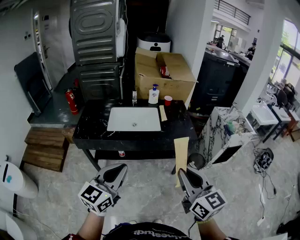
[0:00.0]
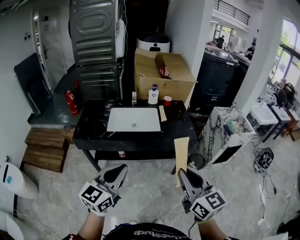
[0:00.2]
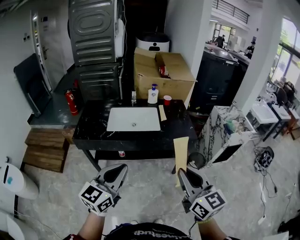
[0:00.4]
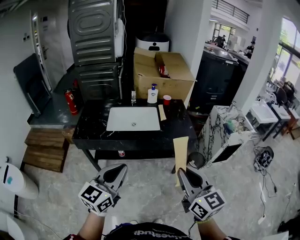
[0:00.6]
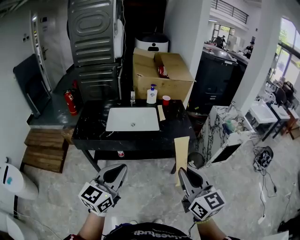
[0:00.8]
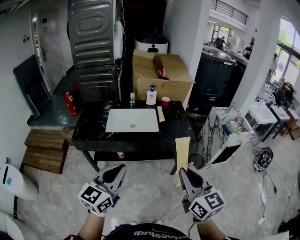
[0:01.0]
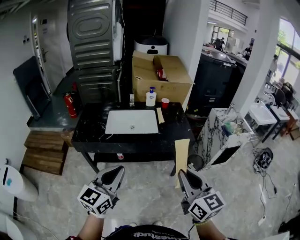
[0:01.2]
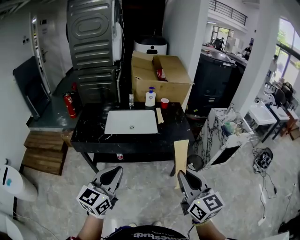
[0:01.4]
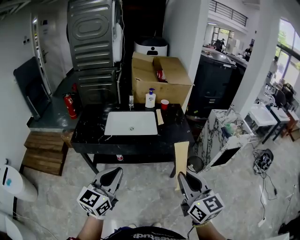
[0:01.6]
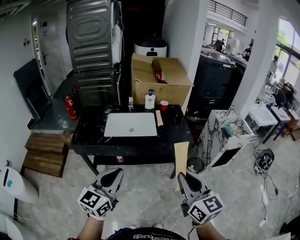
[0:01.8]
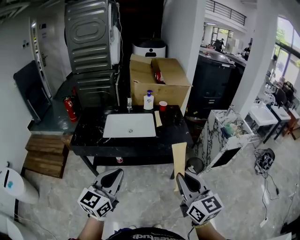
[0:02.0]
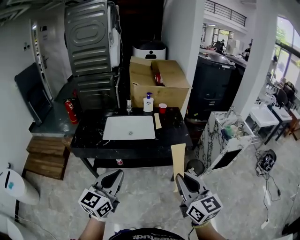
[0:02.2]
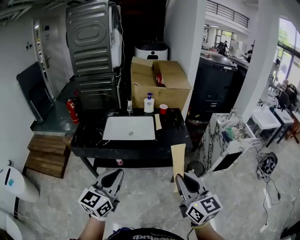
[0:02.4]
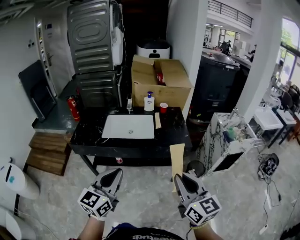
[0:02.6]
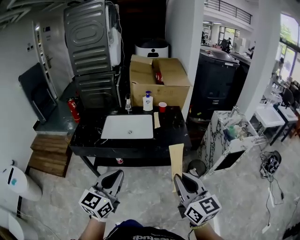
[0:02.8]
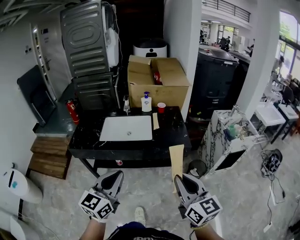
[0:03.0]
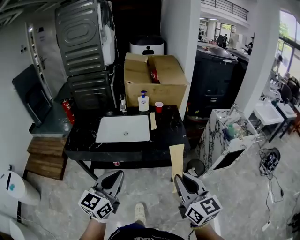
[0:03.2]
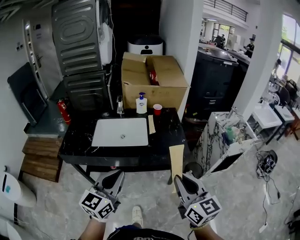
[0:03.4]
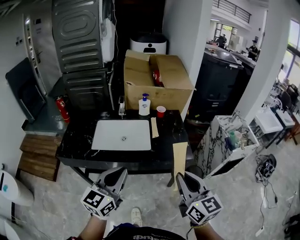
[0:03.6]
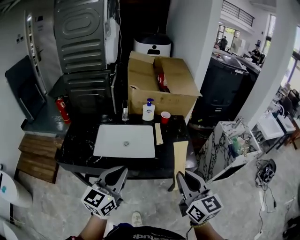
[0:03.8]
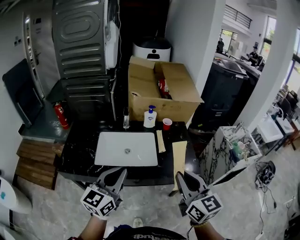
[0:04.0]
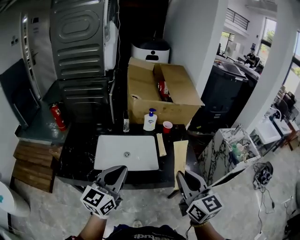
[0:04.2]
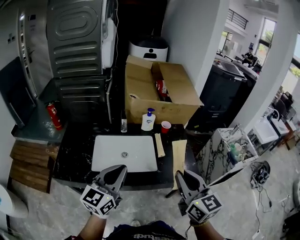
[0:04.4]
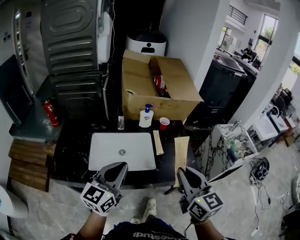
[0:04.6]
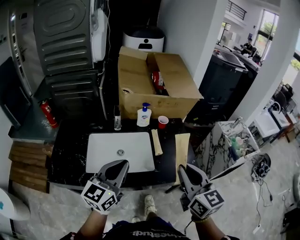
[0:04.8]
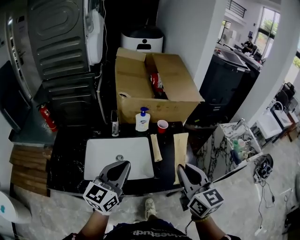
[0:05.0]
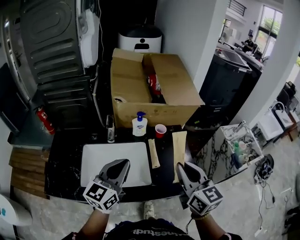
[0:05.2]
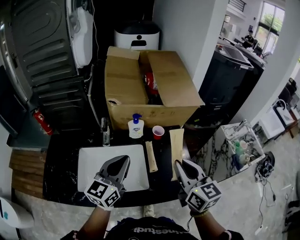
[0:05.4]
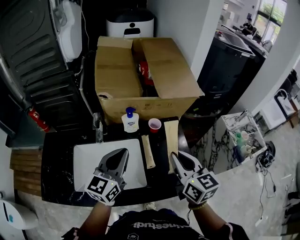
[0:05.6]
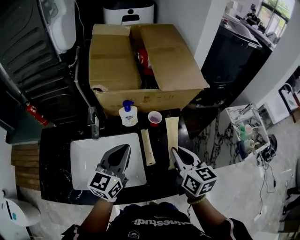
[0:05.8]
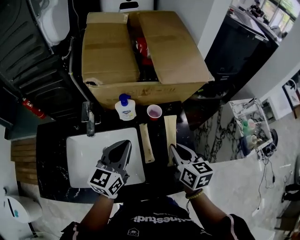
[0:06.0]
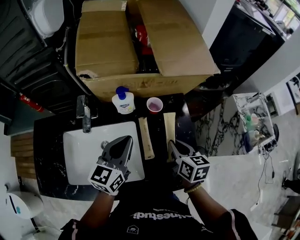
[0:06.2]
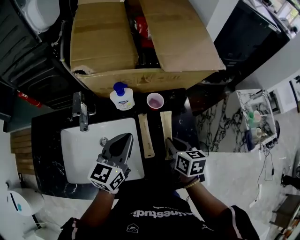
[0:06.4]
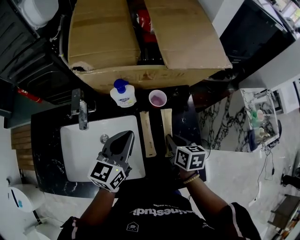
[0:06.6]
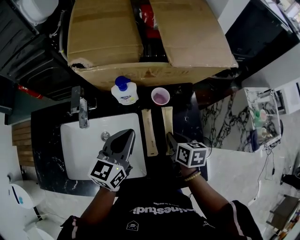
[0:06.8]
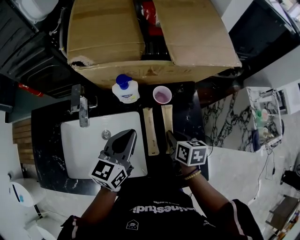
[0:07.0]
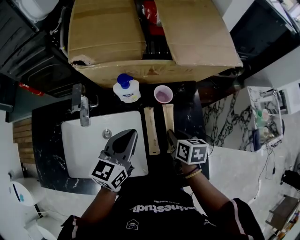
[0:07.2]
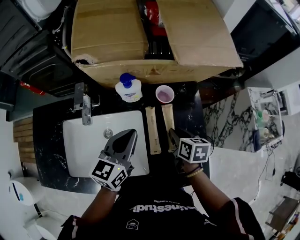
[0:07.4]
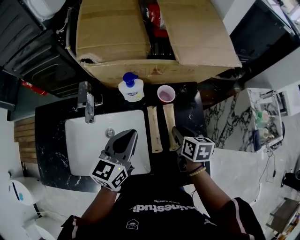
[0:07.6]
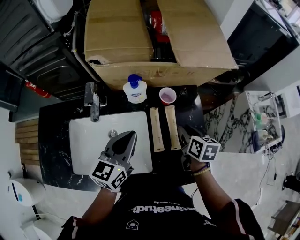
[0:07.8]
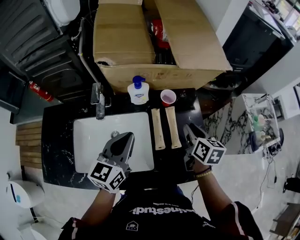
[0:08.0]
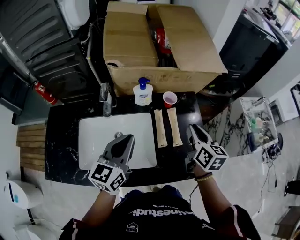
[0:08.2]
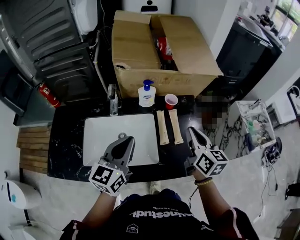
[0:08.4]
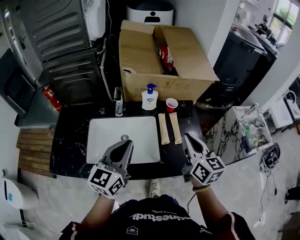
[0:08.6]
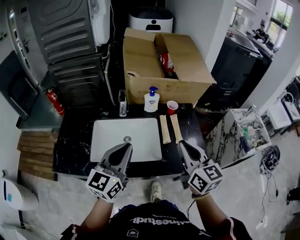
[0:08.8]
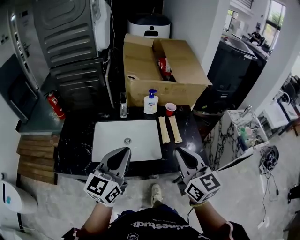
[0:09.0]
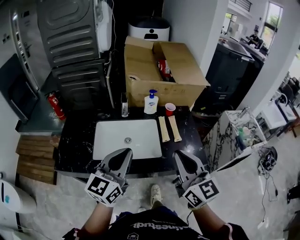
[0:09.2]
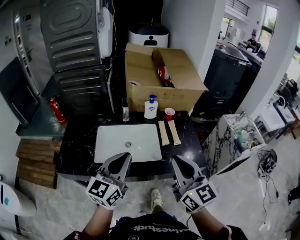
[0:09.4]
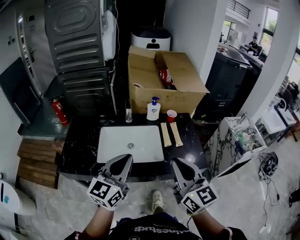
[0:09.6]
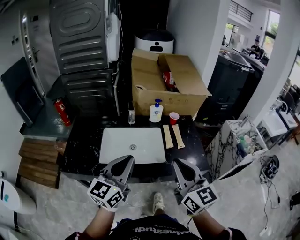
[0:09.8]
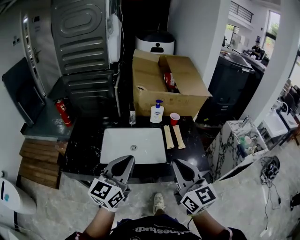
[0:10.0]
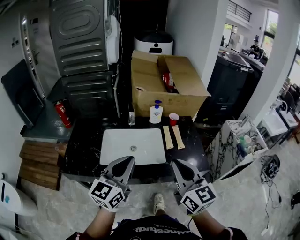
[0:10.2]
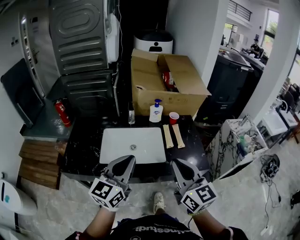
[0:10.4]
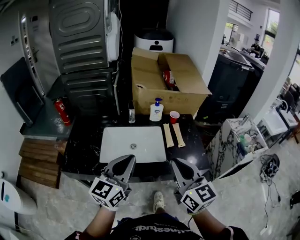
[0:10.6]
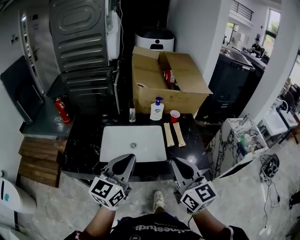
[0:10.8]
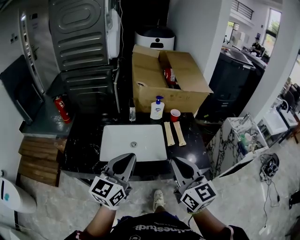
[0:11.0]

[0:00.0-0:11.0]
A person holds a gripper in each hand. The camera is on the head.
0:00.0 to 0:01.6: The grippers make only small movements.
0:01.6 to 0:03.2: Both grippers move to the right and forward, about 10 cm.
0:03.2 to 0:04.8: Both grippers travel together forward, some 30 cm.
0:04.8 to 0:06.2: The two grippers go about 35 cm forward and downward. The right gripper changes its angle by about 30 degrees.
0:07.8 to 0:09.4: The left gripper travels backward and upward by roughly 35 cm. Meanwhile the right gripper travels backward, upward and to the left by about 50 cm, tilts its fingers approximately 40 degrees upward, and closes.
0:09.4 to 0:11.0: The grippers move only a little.

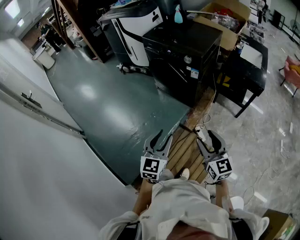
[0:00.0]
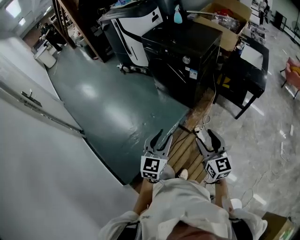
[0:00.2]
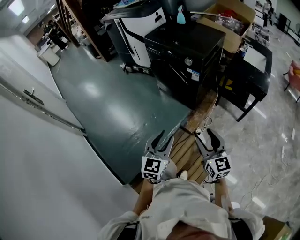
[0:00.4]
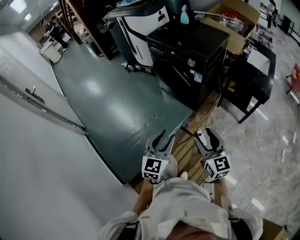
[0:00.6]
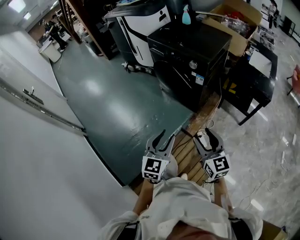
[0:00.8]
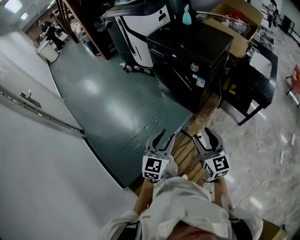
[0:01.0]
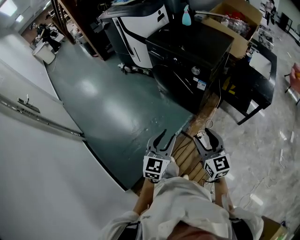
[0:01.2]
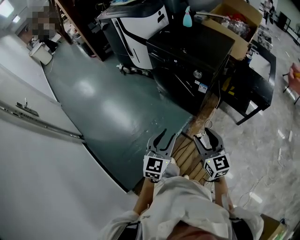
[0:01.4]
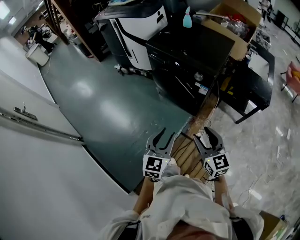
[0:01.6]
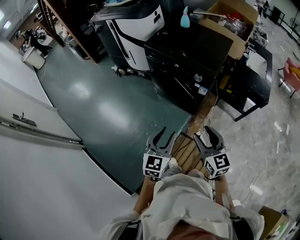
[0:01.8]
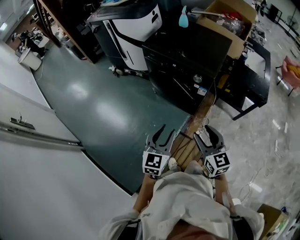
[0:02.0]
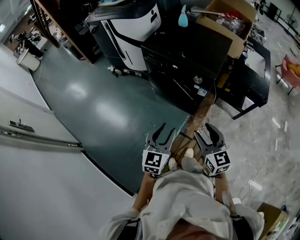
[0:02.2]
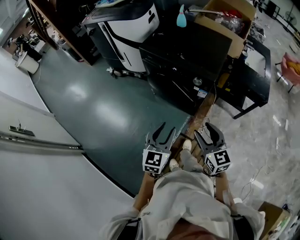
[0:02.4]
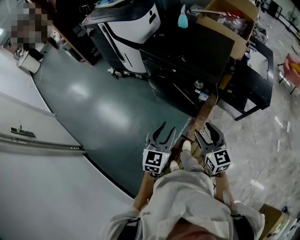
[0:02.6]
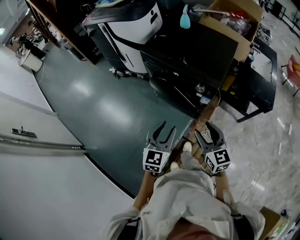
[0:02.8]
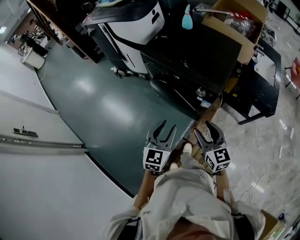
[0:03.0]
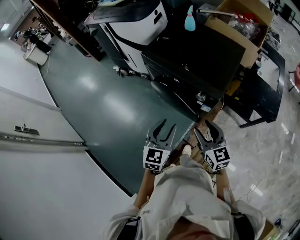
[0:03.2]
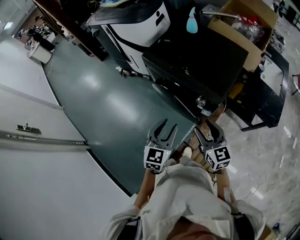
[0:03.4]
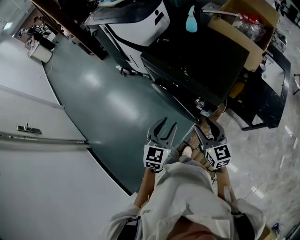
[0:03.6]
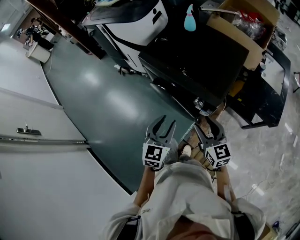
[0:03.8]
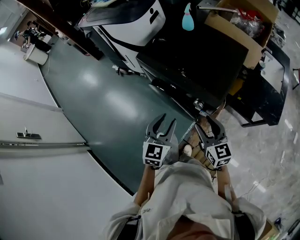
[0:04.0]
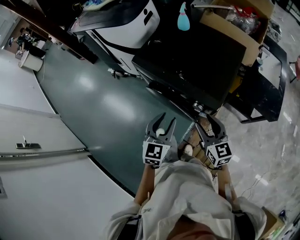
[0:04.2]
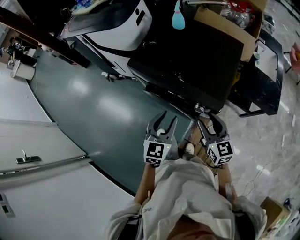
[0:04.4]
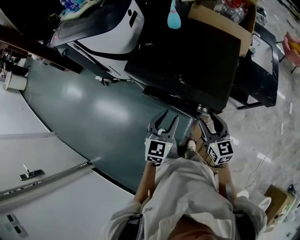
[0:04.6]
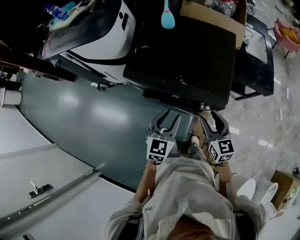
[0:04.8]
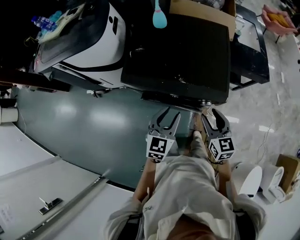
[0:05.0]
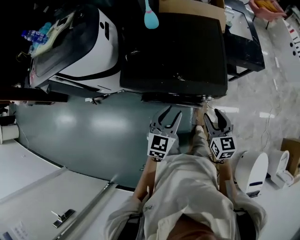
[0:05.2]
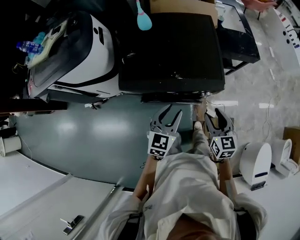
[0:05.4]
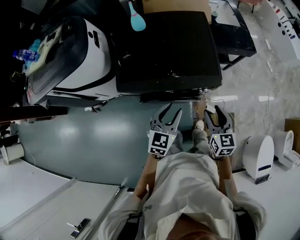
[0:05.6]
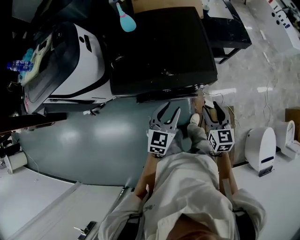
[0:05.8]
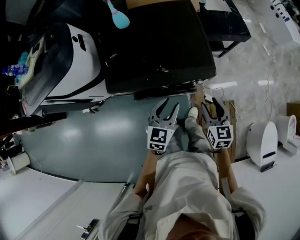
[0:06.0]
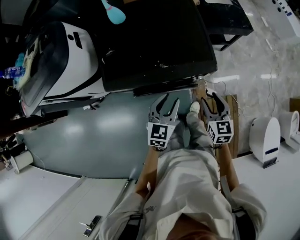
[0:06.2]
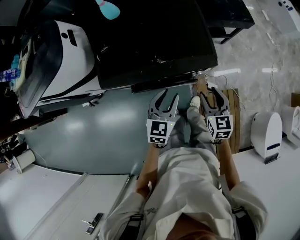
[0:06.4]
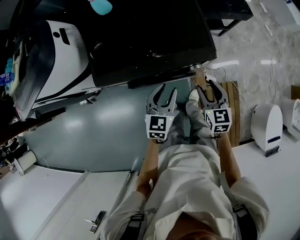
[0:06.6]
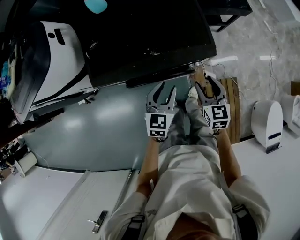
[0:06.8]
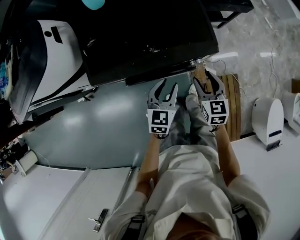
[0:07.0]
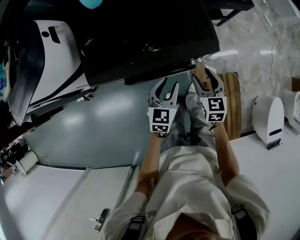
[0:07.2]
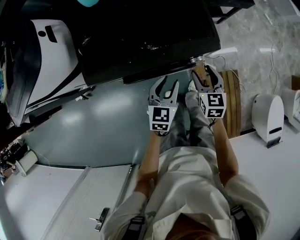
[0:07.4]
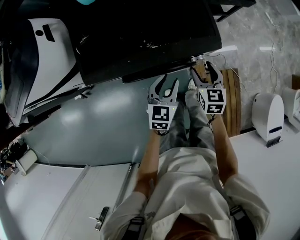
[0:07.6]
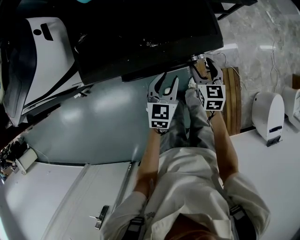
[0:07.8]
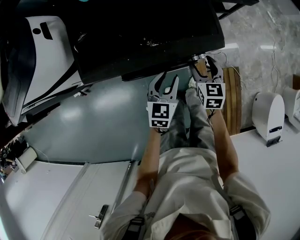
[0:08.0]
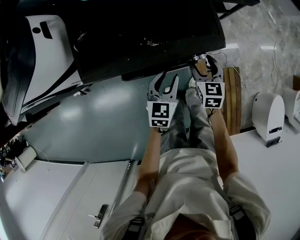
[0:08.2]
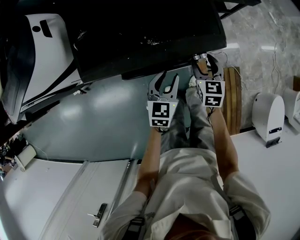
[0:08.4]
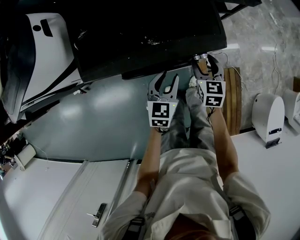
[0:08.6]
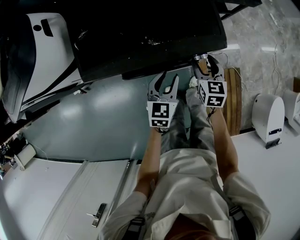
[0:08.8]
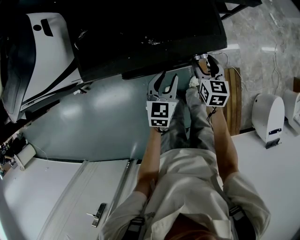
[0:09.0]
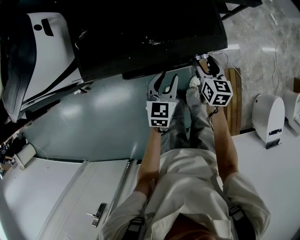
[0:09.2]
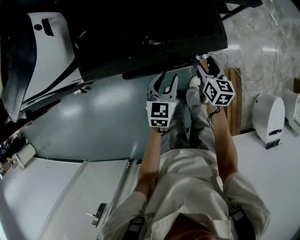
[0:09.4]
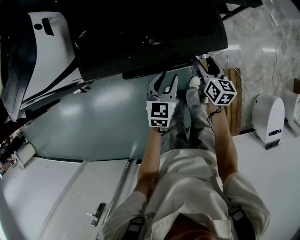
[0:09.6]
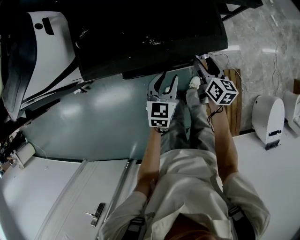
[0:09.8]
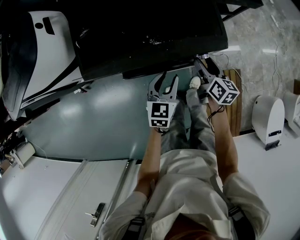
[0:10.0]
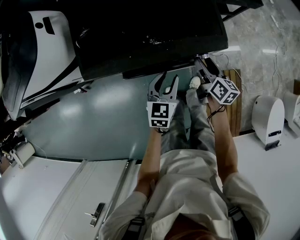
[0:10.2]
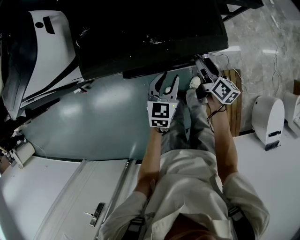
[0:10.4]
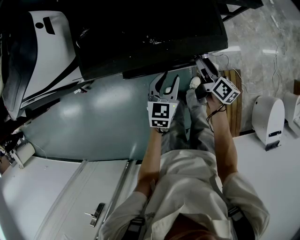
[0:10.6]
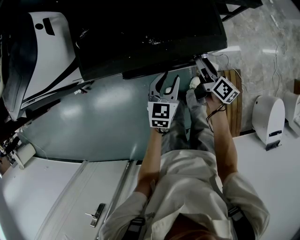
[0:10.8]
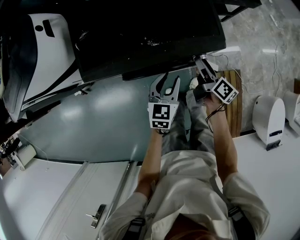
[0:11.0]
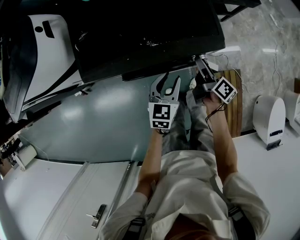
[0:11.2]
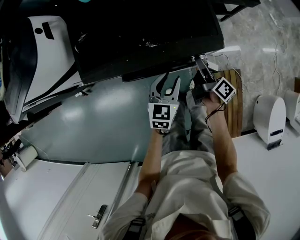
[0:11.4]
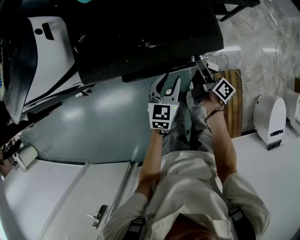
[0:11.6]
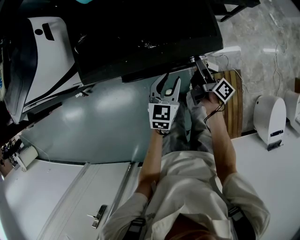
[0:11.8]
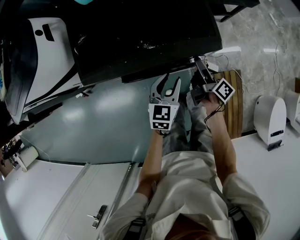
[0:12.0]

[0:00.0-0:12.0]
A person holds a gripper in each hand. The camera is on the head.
0:00.0 to 0:01.6: The two grippers go some 20 cm forward.
0:01.6 to 0:03.0: Both grippers travel together forward, roughly 20 cm.
0:03.0 to 0:04.4: The two grippers go approximately 15 cm forward.
0:04.4 to 0:06.0: The left gripper ends up approximately 5 cm from where it was, and swivels about 40 degrees. The right gripper swivels roughly 50 degrees.
0:06.0 to 0:07.6: The right gripper shifts approximately 15 cm downward and forward. Meanwhile the left gripper travels downward by approximately 15 cm.
0:07.6 to 0:09.0: There are only small adjustments of the grippers.
0:09.0 to 0:10.4: The right gripper swivels approximately 40 degrees.
0:10.4 to 0:12.0: The right gripper turns by roughly 30 degrees.

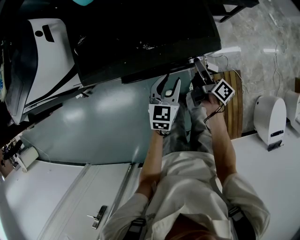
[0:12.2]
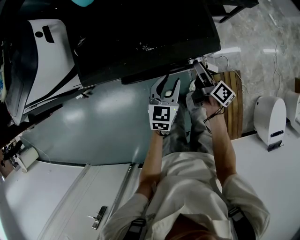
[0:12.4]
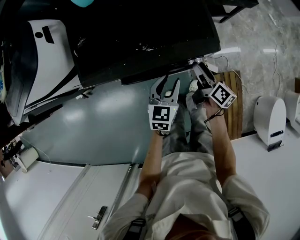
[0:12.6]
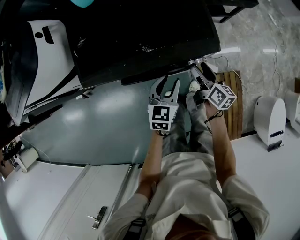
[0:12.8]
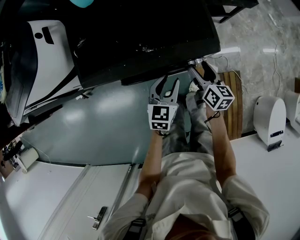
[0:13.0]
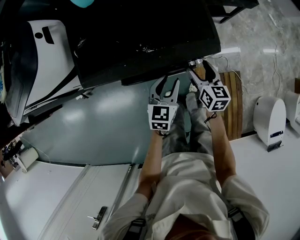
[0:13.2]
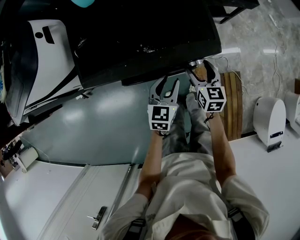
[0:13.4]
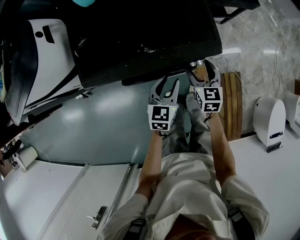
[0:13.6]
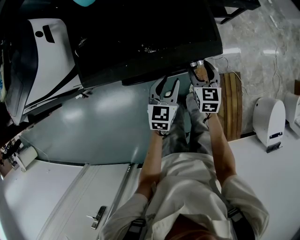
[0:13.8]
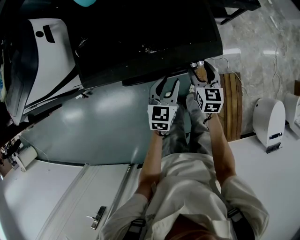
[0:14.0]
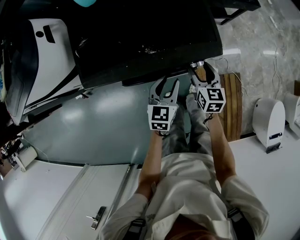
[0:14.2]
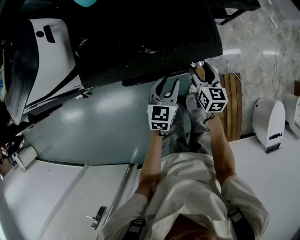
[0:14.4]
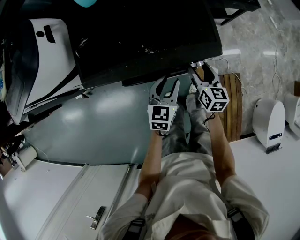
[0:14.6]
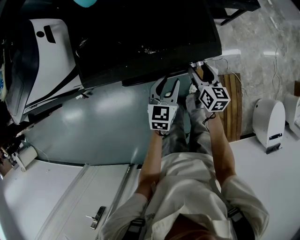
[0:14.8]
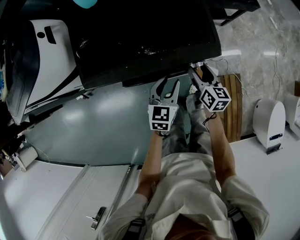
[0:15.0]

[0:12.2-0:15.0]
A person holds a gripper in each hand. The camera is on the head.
0:12.2 to 0:13.6: The right gripper rotates around the line of its fingers by some 70 degrees, counterclockwise from behind.
0:13.6 to 0:15.0: The right gripper rotates about 30 degrees.
